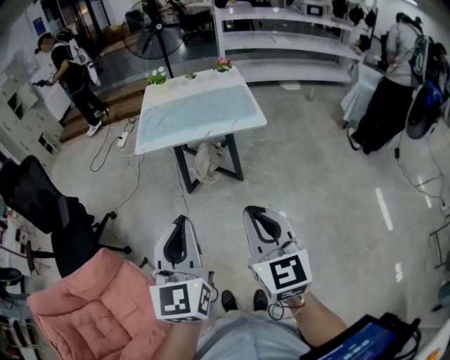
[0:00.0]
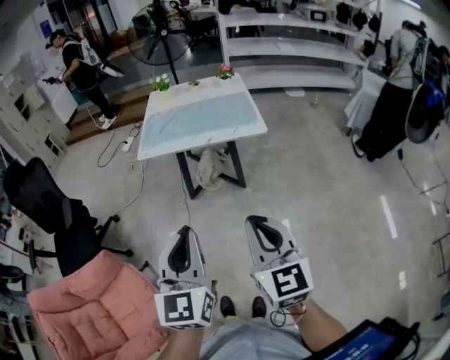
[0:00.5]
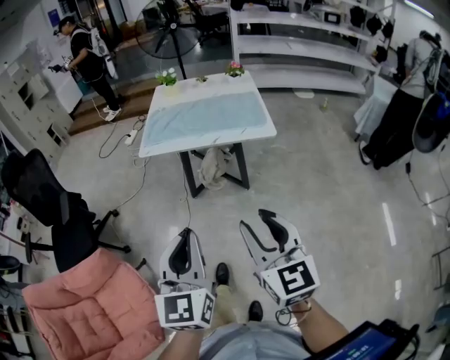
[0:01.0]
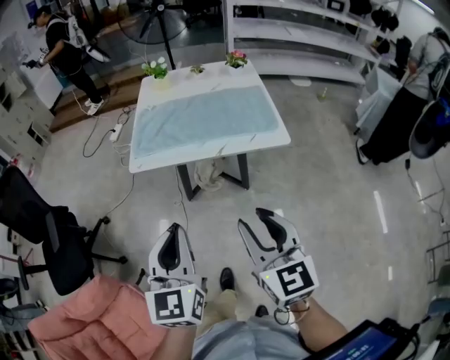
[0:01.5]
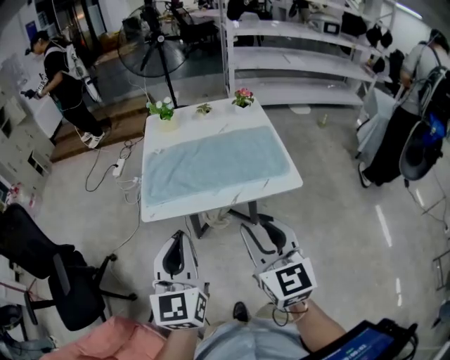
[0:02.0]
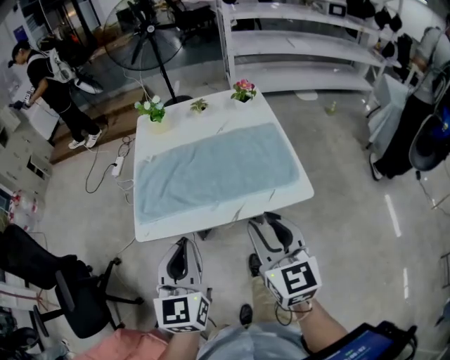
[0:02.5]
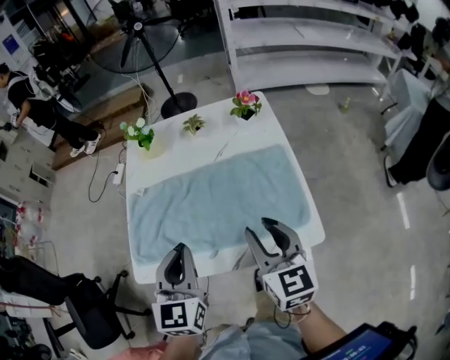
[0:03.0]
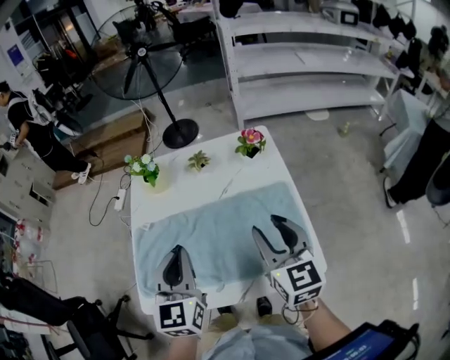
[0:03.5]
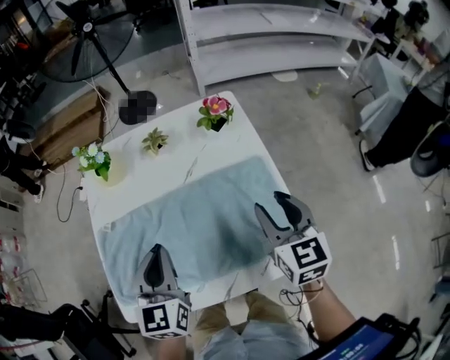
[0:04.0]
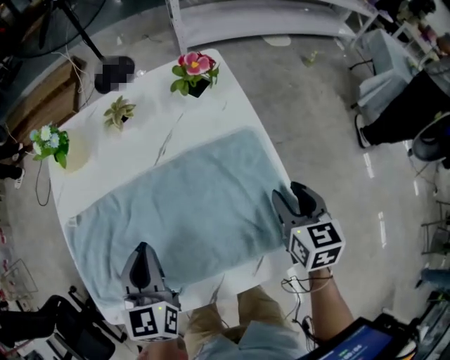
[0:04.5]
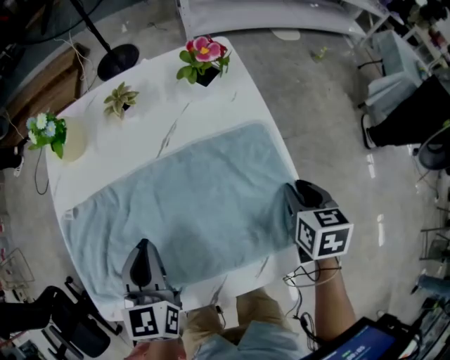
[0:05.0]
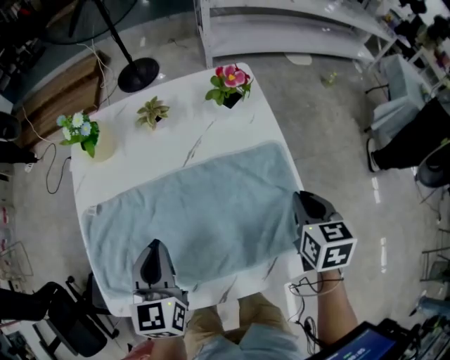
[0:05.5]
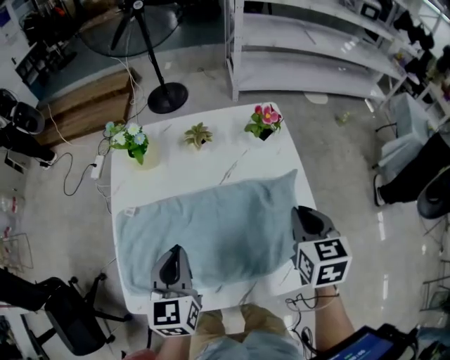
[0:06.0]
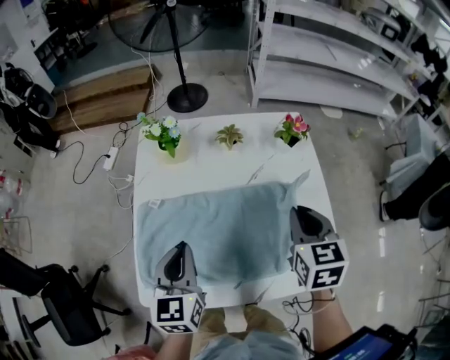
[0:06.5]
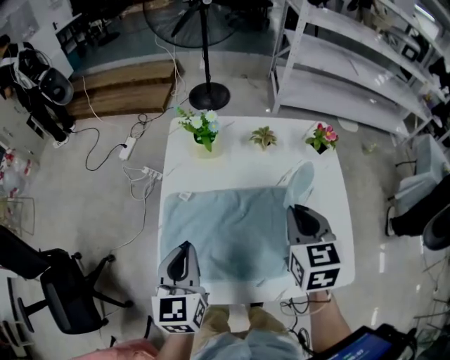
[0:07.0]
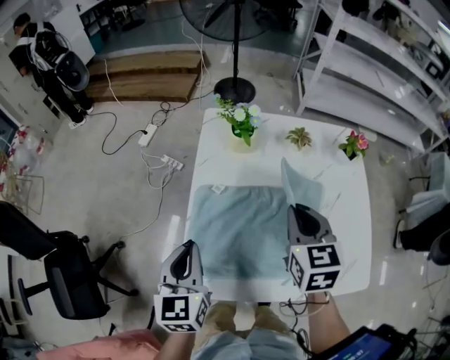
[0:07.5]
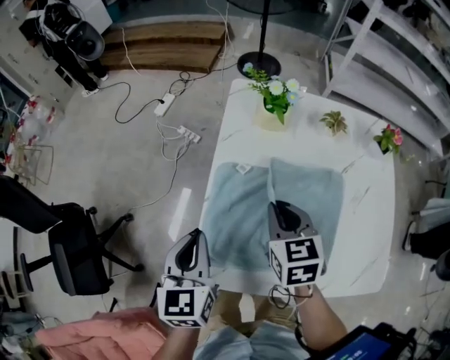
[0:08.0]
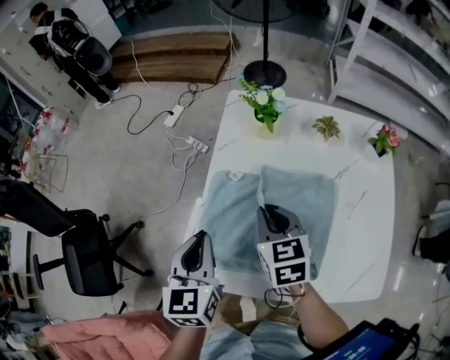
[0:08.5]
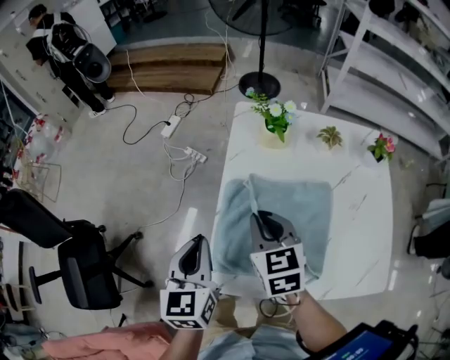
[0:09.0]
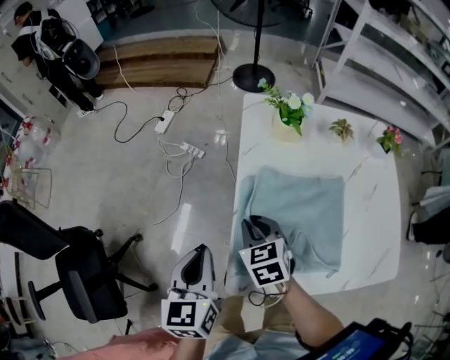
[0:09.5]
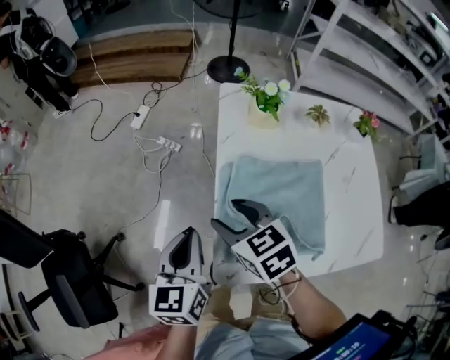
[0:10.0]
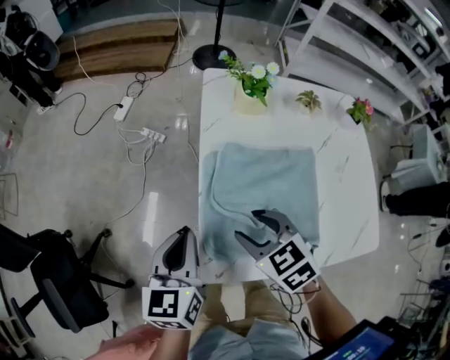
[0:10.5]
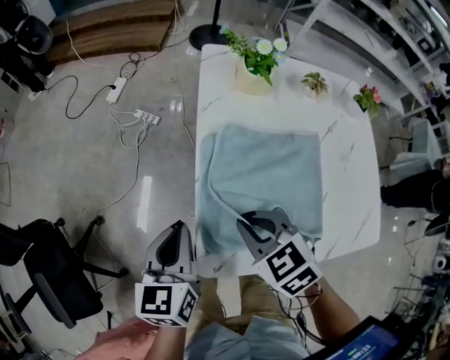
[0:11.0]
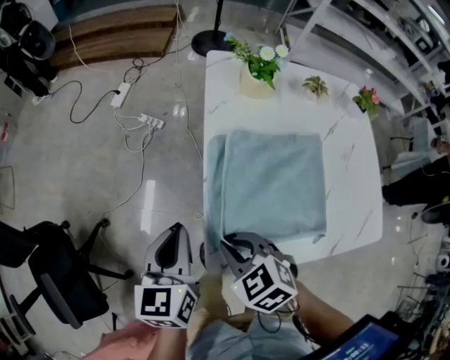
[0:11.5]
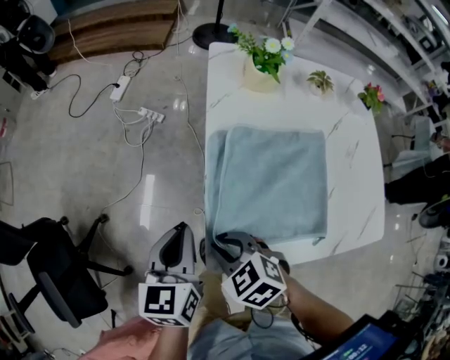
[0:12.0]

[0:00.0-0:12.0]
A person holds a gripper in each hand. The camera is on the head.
0:00.0 to 0:02.0: The grippers both shift forward by roughly 35 cm. The right gripper opens up.
0:02.0 to 0:04.0: The left gripper moves forward, approximately 40 cm. The right gripper shifts roughly 40 cm forward and to the right.
0:04.0 to 0:06.0: The left gripper goes downward and returns, some 10 cm each way. The right gripper moves about 15 cm downward and comes back, and closes.
0:06.0 to 0:08.0: The right gripper travels to the left by about 40 cm, and swivels roughly 20 degrees; the left gripper shifts about 25 cm to the left.
0:08.0 to 0:10.0: The right gripper goes approximately 15 cm to the left, and opens up; the left gripper goes approximately 5 cm to the left.
0:10.0 to 0:12.0: The right gripper heads backward and downward, covering roughly 15 cm, rotates approximately 20 degrees, and closes; the left gripper heads downward, covering some 5 cm.

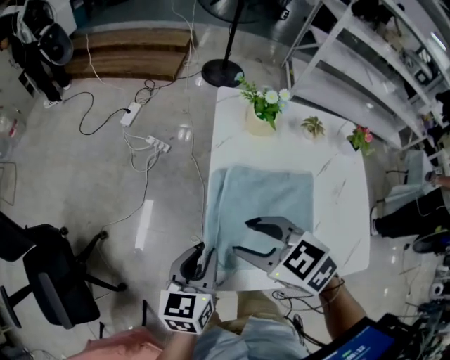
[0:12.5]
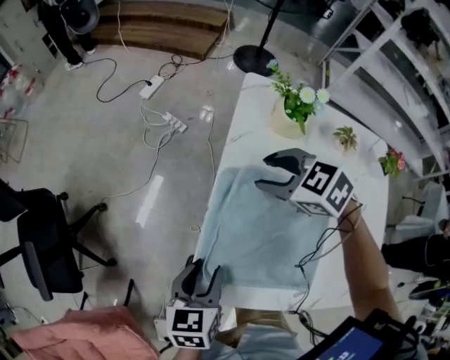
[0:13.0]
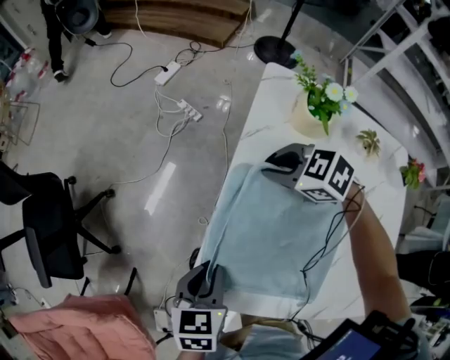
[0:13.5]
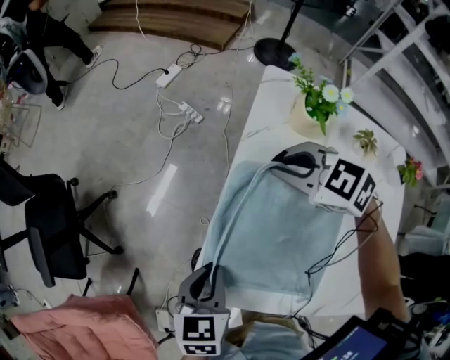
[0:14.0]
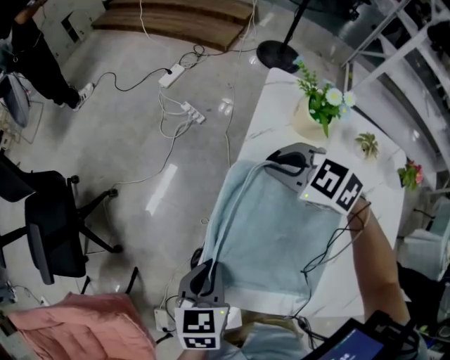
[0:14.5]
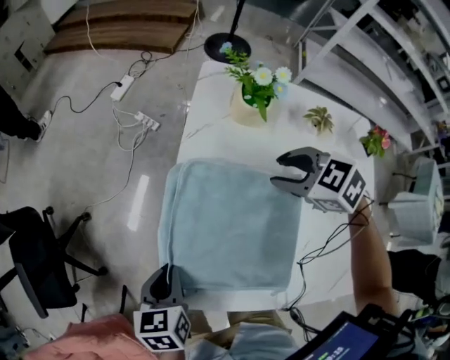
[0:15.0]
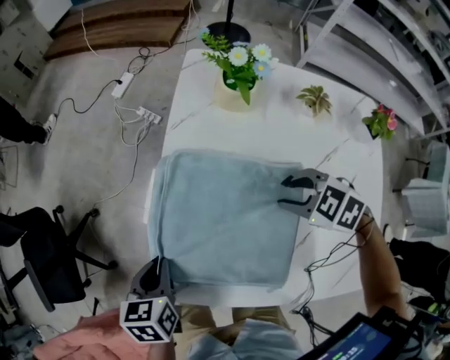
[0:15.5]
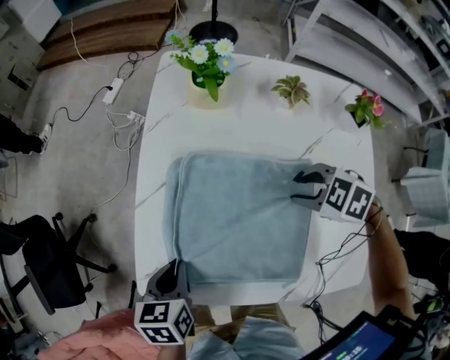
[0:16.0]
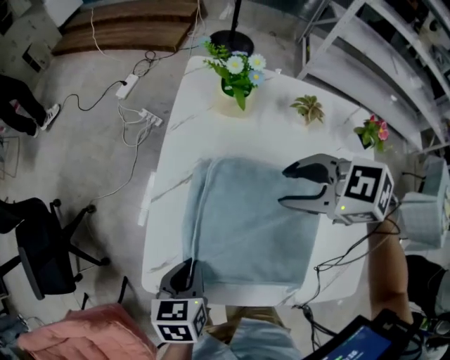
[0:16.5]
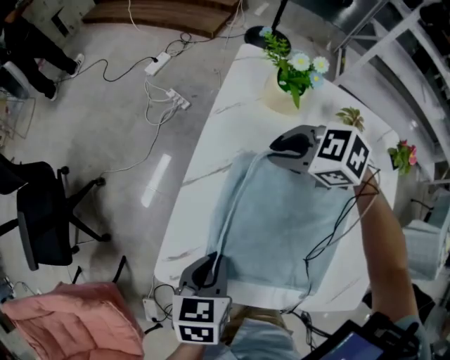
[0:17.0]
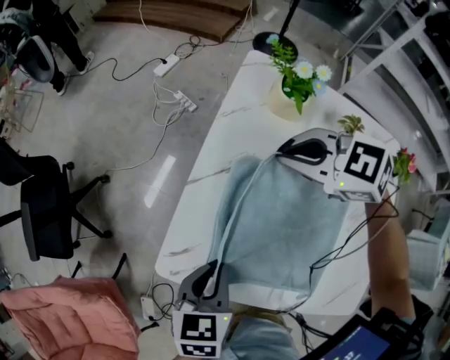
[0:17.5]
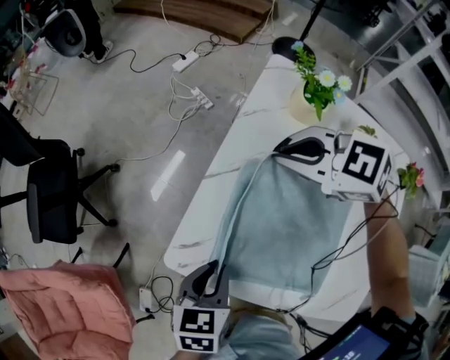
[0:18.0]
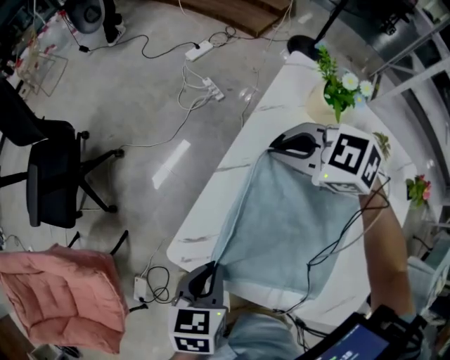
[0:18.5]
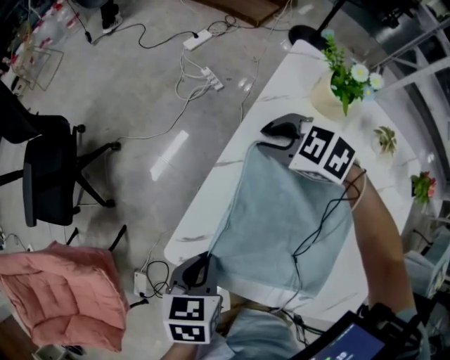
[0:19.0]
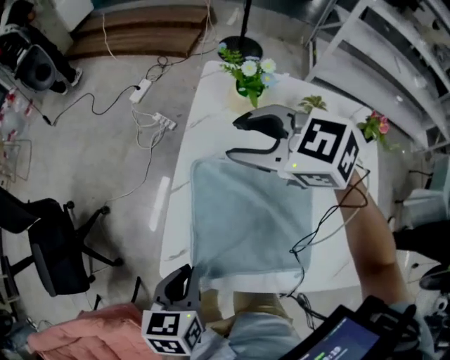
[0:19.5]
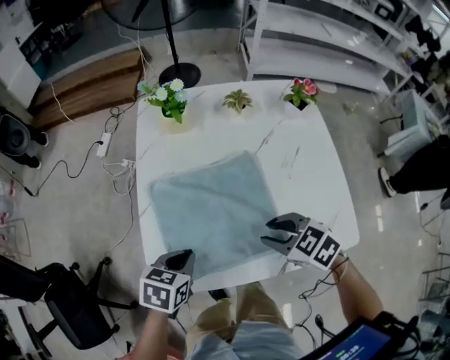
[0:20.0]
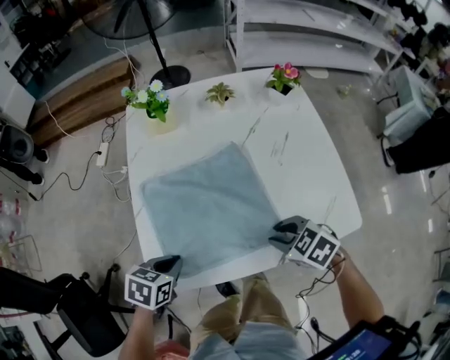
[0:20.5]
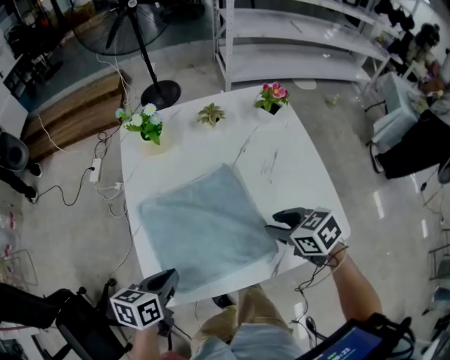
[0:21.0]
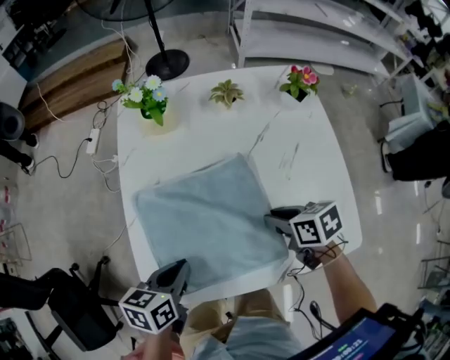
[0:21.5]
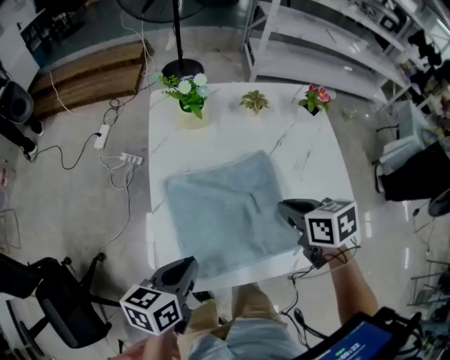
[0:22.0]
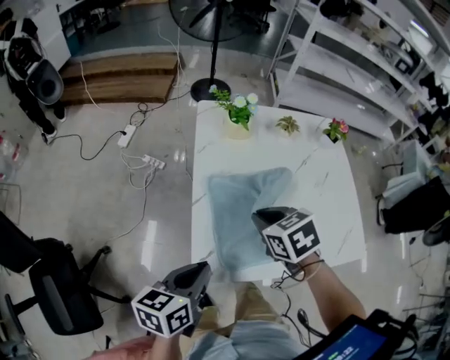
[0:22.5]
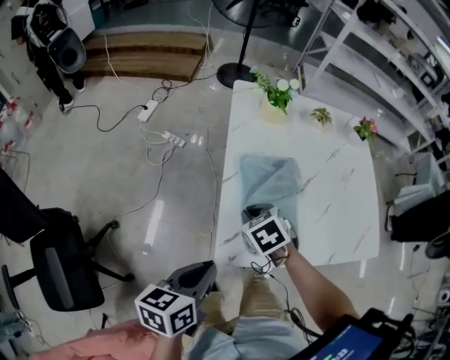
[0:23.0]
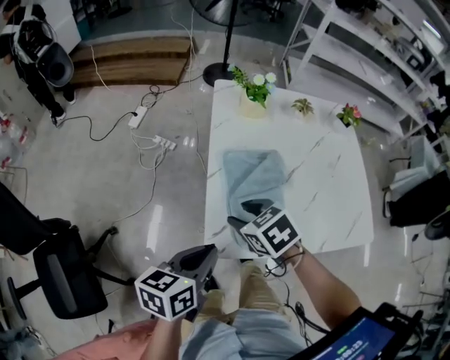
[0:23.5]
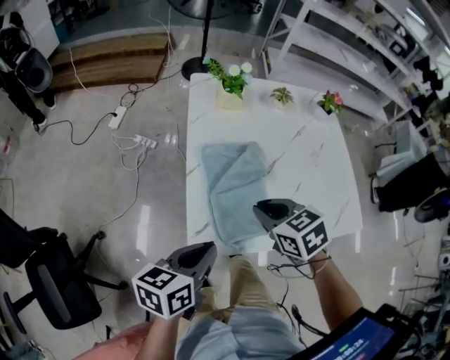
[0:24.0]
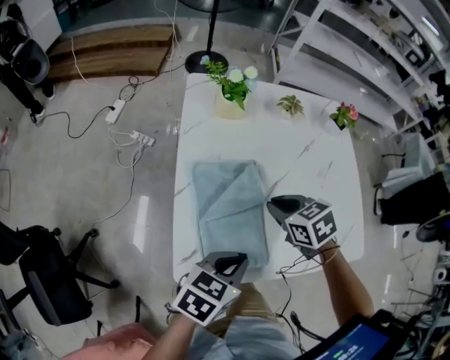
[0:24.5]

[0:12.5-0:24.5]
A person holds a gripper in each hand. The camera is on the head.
0:12.5 to 0:14.5: The right gripper travels forward, to the right and downward by roughly 20 cm, swivels approximately 30 degrees, and closes up. Meanwhile the left gripper shifts roughly 5 cm downward, turns by some 30 degrees, and opens and closes again.
0:14.5 to 0:16.5: The left gripper is displaced to the right and backward by roughly 10 cm, while the right gripper goes about 20 cm backward and to the right, and opens its fingers.
0:16.5 to 0:18.5: The right gripper goes roughly 20 cm forward and to the left, changes its angle by roughly 20 degrees, and closes up; the left gripper moves to the left, about 5 cm.
0:18.5 to 0:20.5: The left gripper swivels some 60 degrees. The right gripper moves up and down over roughly 20 cm, changing direction 2 times, and twists approximately 50 degrees clockwise, seen from behind.
0:20.5 to 0:22.5: The right gripper travels to the left, upward and forward by some 25 cm. Meanwhile the left gripper shifts roughly 15 cm upward and to the left, and tips its fingers upward by roughly 30 degrees.
0:22.5 to 0:24.5: The left gripper heads to the right, covering roughly 15 cm, and rotates roughly 30 degrees; the right gripper is displaced to the right and downward by roughly 10 cm, and opens, then closes again.

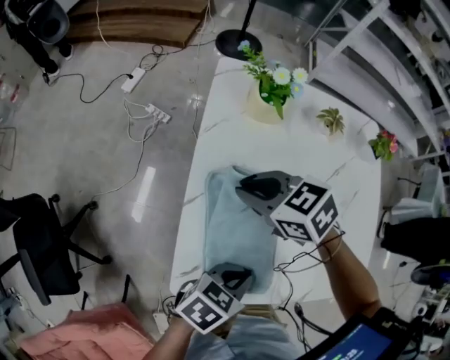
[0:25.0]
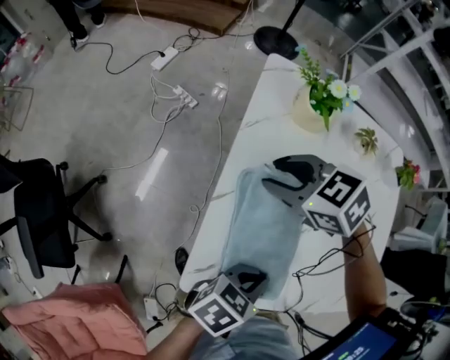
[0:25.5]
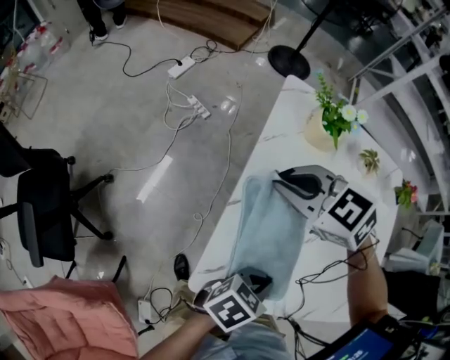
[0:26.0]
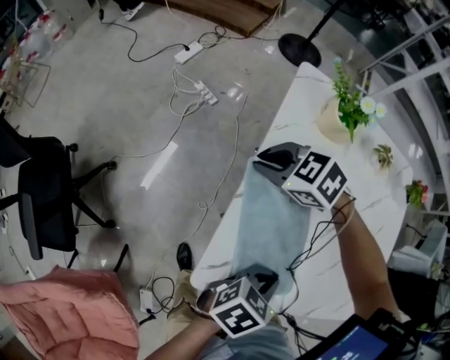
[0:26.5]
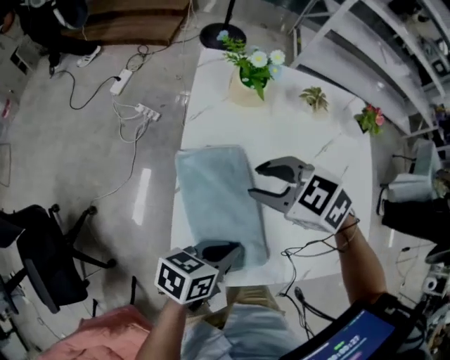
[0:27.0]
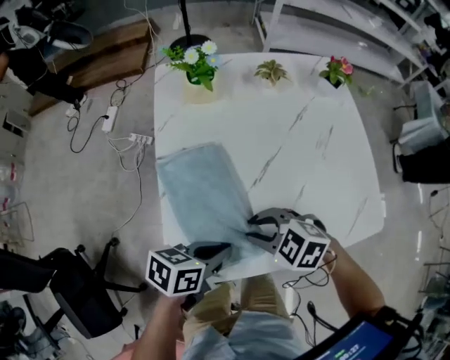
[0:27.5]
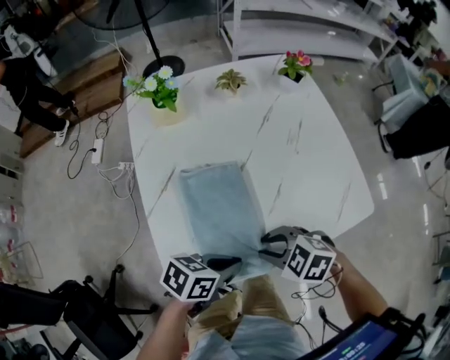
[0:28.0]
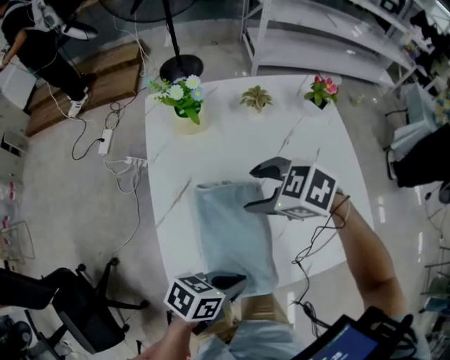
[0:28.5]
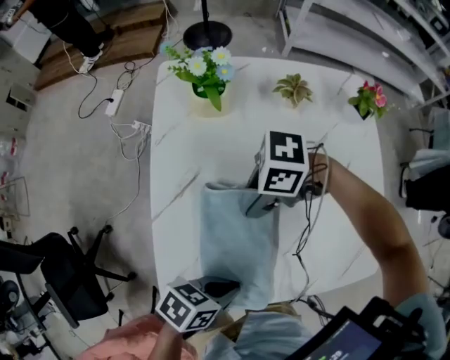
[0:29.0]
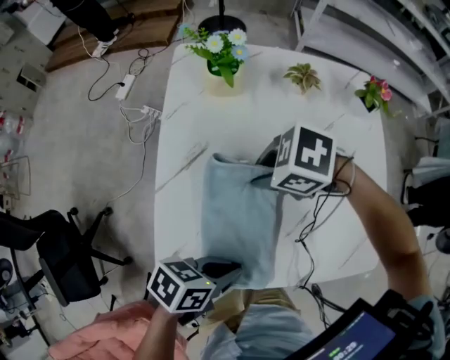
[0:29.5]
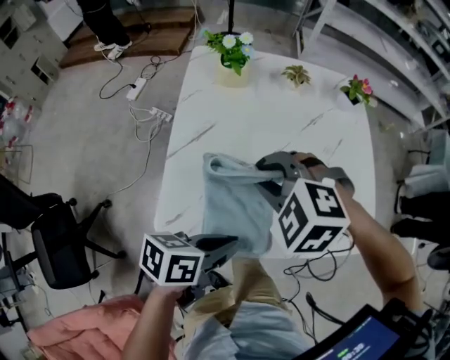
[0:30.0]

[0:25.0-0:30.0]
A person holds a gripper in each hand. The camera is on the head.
0:25.0 to 0:27.5: The right gripper swings up and down, about 10 cm each way, with 3 reversals.
0:27.5 to 0:30.0: The left gripper shifts by roughly 10 cm; the right gripper goes up and down, approximately 10 cm each way, reversing 2 times, rotates some 30 degrees, and opens and closes again.
